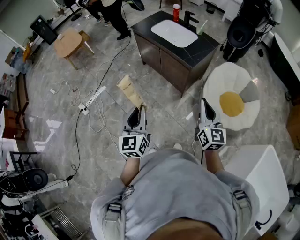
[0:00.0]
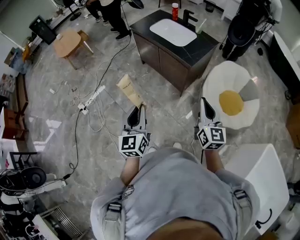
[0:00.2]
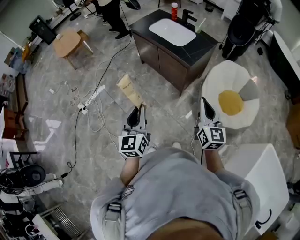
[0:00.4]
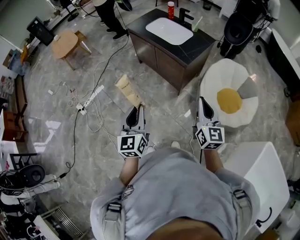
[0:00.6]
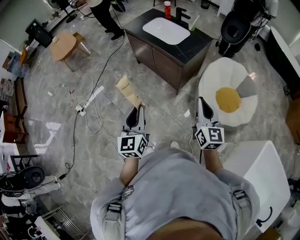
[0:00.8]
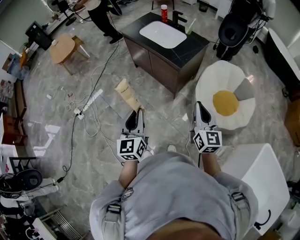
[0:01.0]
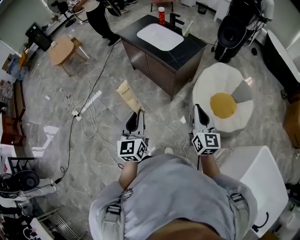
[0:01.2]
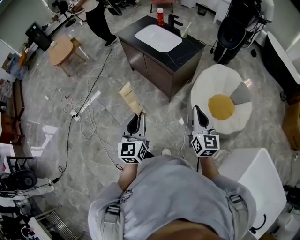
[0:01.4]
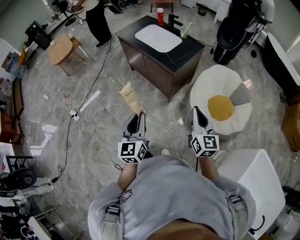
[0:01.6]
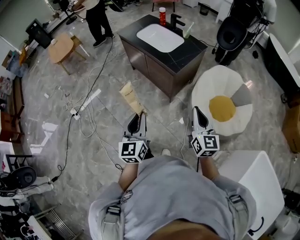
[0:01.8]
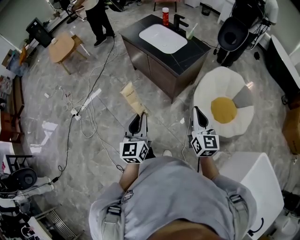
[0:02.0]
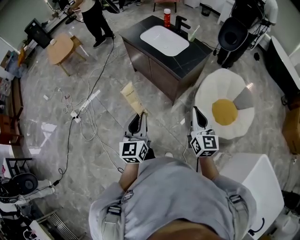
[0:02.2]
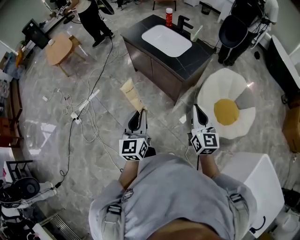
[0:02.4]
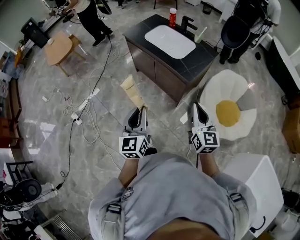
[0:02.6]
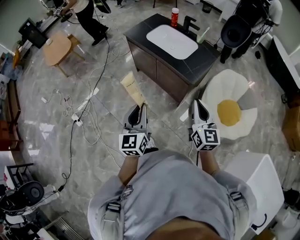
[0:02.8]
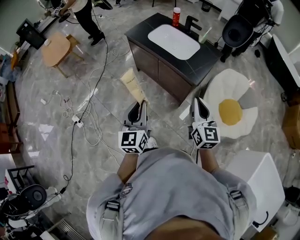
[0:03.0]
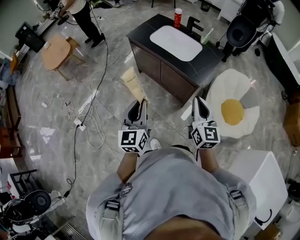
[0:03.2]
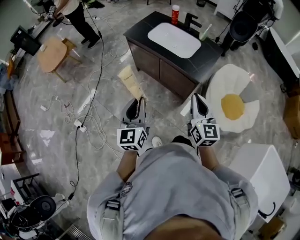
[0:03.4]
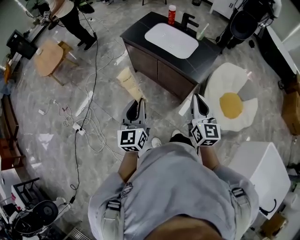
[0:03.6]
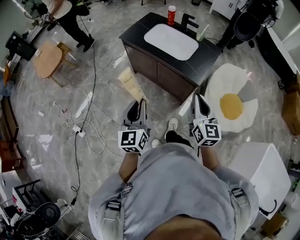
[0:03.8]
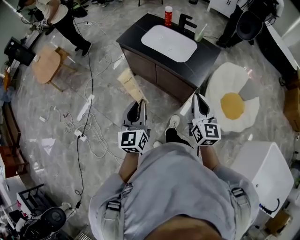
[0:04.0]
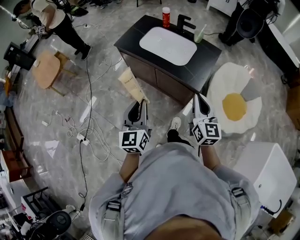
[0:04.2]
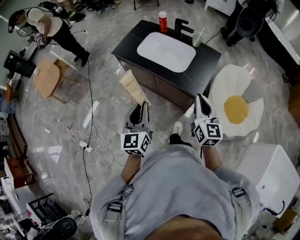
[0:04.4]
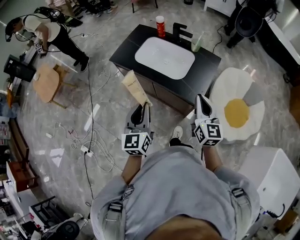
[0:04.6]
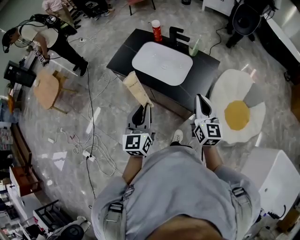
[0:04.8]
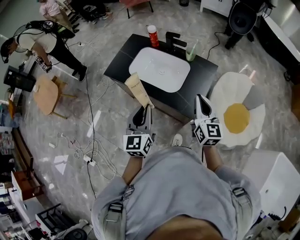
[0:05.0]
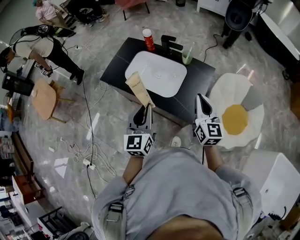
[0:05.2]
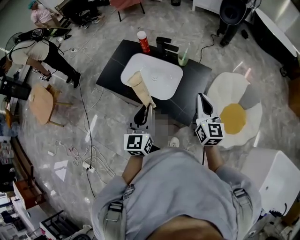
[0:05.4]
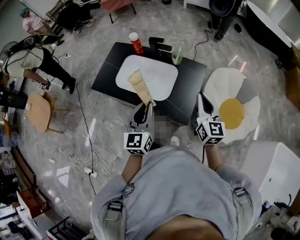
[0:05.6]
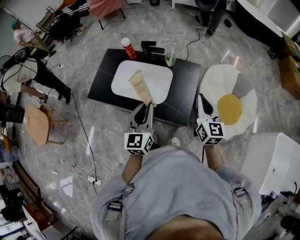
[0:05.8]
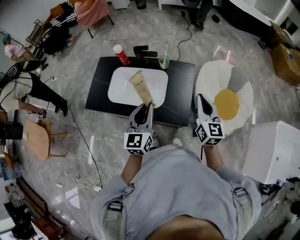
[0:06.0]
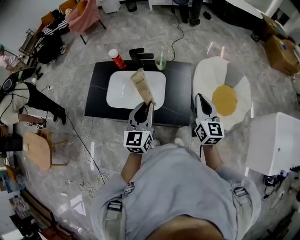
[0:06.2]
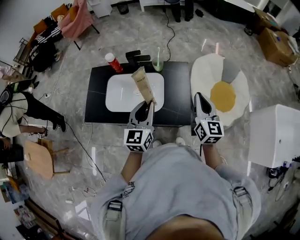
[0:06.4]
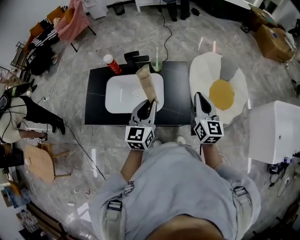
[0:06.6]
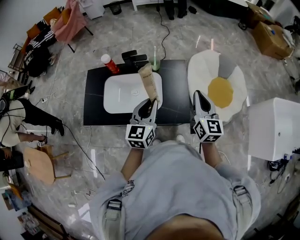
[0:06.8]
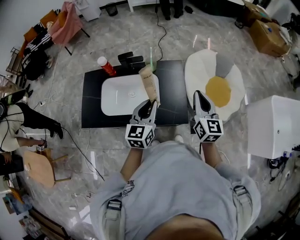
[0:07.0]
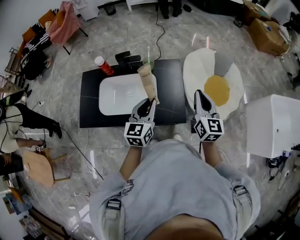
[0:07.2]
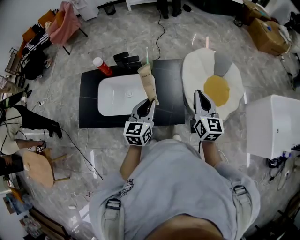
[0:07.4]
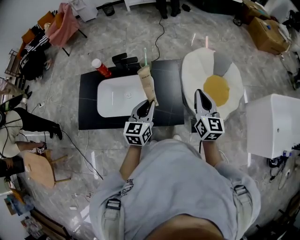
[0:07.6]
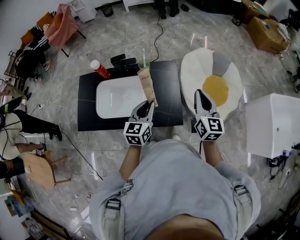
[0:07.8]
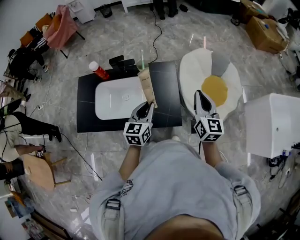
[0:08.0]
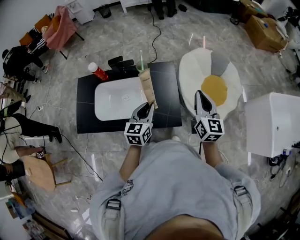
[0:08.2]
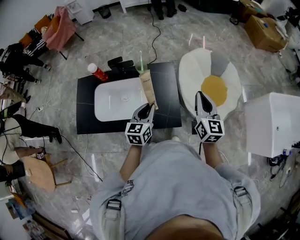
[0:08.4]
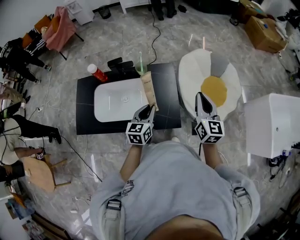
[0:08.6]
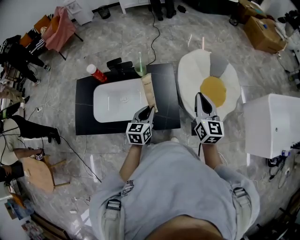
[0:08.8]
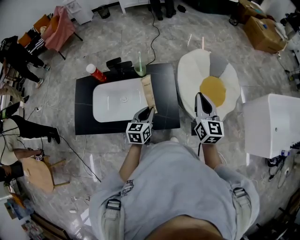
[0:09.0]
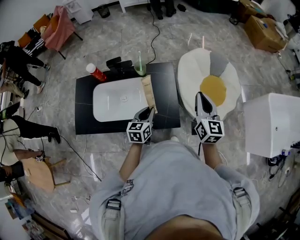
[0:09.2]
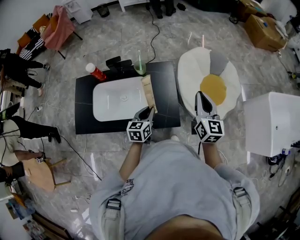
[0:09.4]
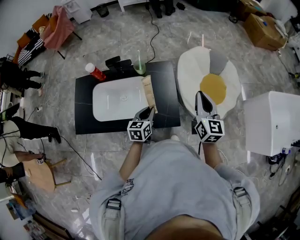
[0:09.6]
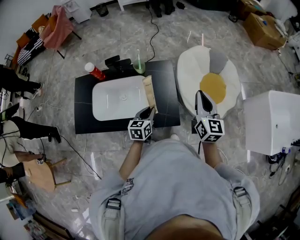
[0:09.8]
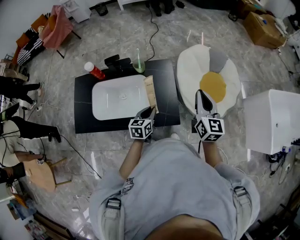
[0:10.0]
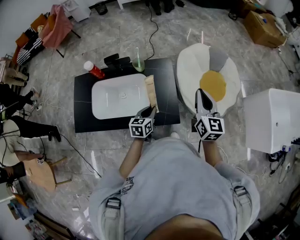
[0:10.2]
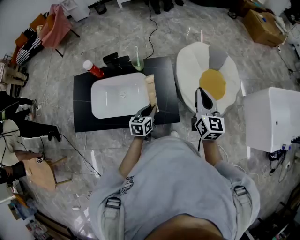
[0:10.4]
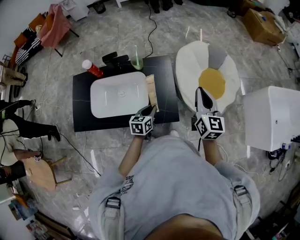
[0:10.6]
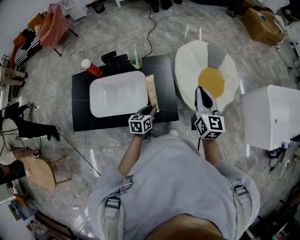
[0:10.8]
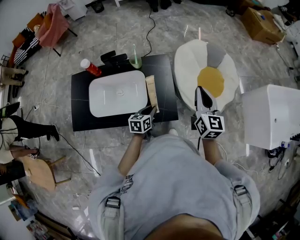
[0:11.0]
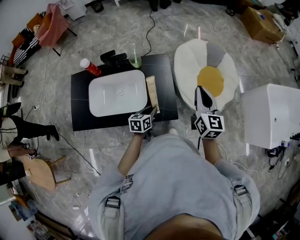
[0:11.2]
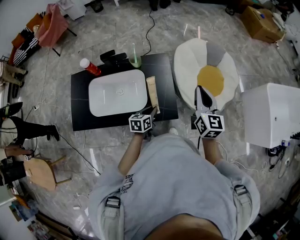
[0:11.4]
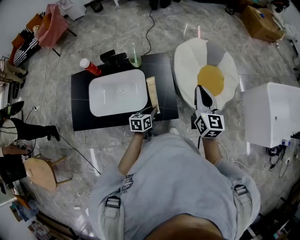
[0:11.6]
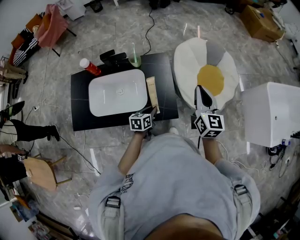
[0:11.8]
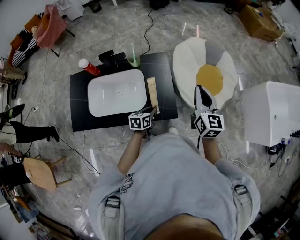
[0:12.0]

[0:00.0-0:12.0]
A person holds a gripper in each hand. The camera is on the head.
0:00.0 to 0:01.6: Both grippers move to the right, about 10 cm.
0:01.6 to 0:03.0: Both grippers travel together forward and to the left, roughly 25 cm.
0:03.0 to 0:04.4: The two grippers go roughly 20 cm forward.
0:04.4 to 0:06.0: Both grippers move forward and to the right, roughly 25 cm. The left gripper changes its angle by some 30 degrees, while the right gripper changes its angle by about 20 degrees.
0:06.0 to 0:07.6: The left gripper moves forward and downward, roughly 10 cm, and rotates some 20 degrees.
0:07.6 to 0:09.0: The left gripper travels downward by about 10 cm.
0:09.0 to 0:10.4: The left gripper shifts approximately 5 cm downward.
0:10.4 to 0:12.0: The left gripper travels downward by approximately 5 cm.

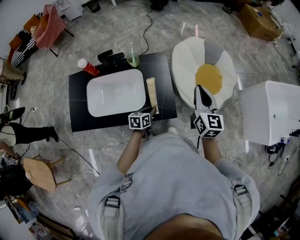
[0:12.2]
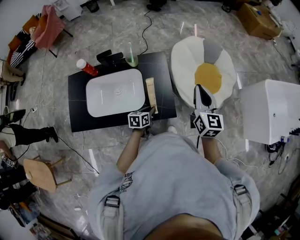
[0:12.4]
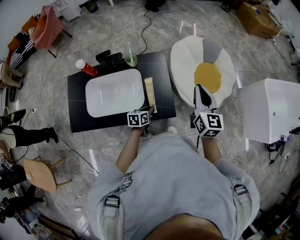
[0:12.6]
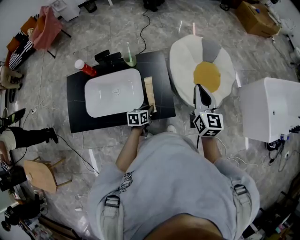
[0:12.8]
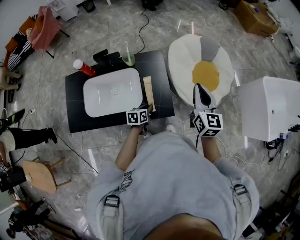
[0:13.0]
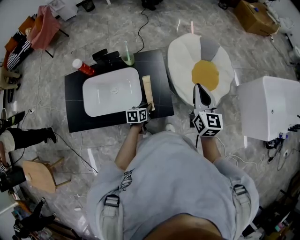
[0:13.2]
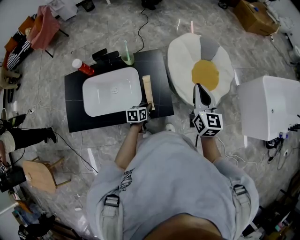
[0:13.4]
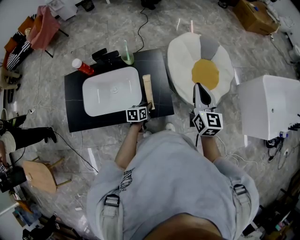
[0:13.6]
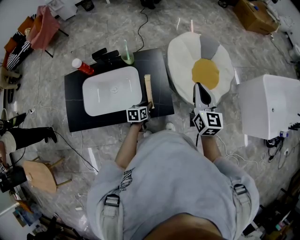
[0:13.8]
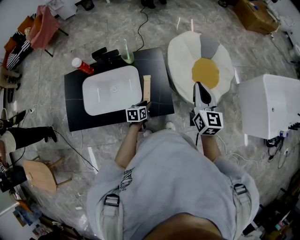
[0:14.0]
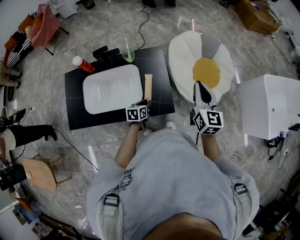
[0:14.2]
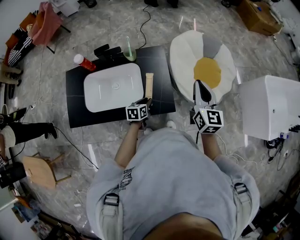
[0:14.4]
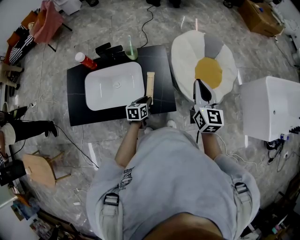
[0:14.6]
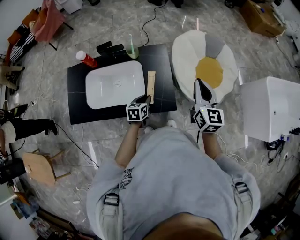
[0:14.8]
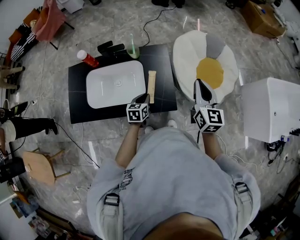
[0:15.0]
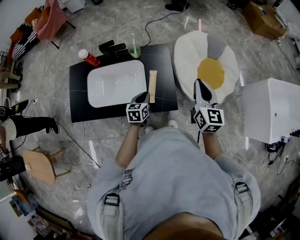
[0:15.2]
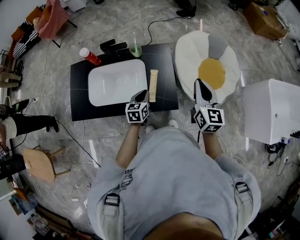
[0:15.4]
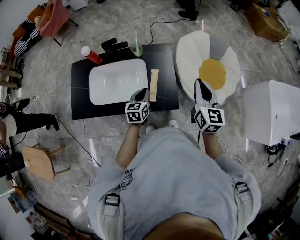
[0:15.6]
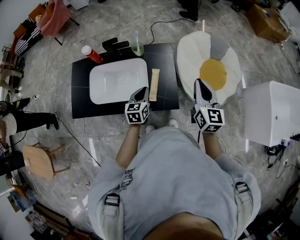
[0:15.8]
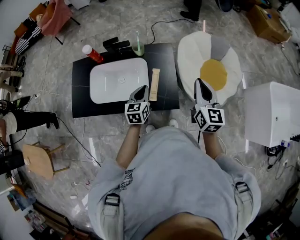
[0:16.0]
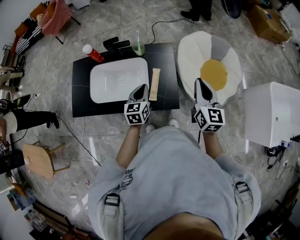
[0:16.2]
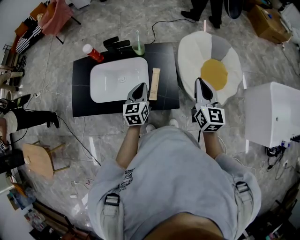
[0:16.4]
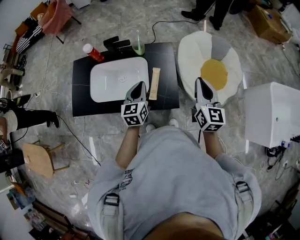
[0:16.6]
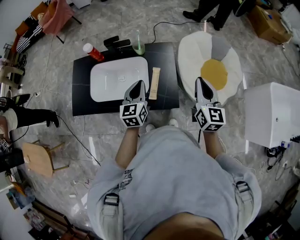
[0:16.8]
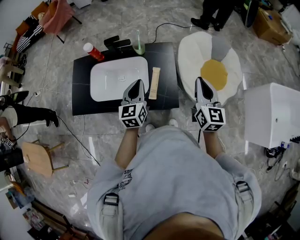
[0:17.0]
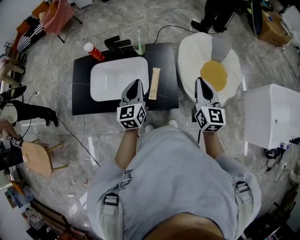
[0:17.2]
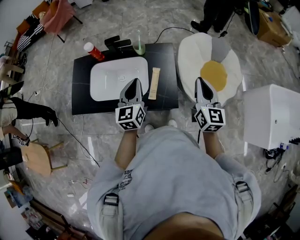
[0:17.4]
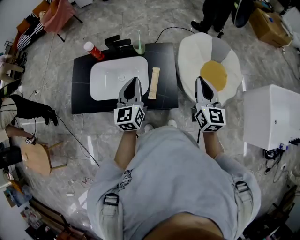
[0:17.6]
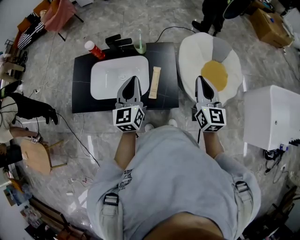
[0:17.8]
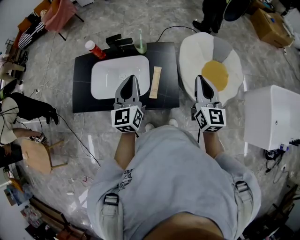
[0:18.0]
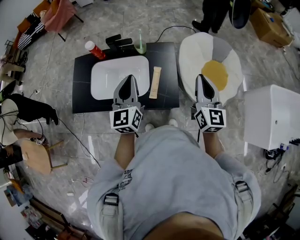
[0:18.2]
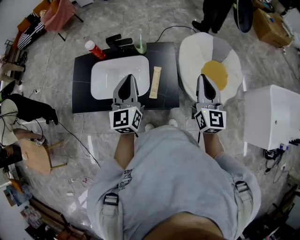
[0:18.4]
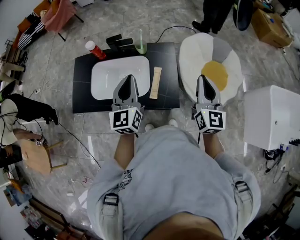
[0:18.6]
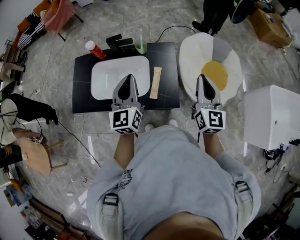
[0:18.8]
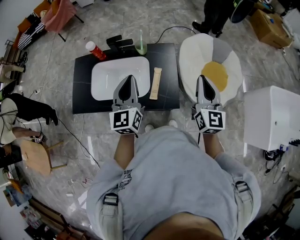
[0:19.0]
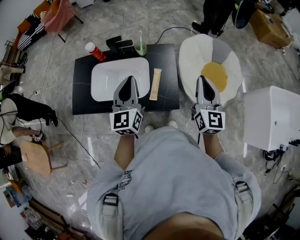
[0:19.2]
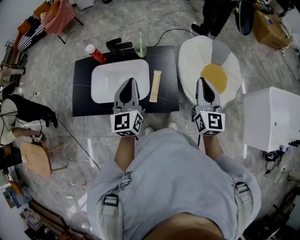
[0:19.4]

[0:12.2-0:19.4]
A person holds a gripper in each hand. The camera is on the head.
0:12.2 to 0:13.6: The grippers move only a little.
0:13.6 to 0:15.0: The left gripper travels upward by about 5 cm.
0:15.0 to 0:16.6: The left gripper shifts approximately 15 cm upward, and rotates approximately 20 degrees.
0:16.6 to 0:18.0: The left gripper is displaced upward by some 10 cm.
0:18.0 to 0:19.4: The grippers stay close to where they were, moving slightly.

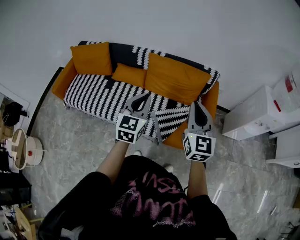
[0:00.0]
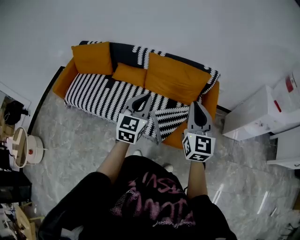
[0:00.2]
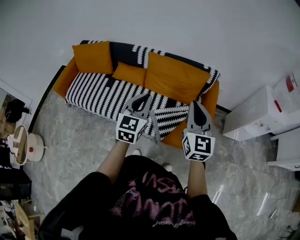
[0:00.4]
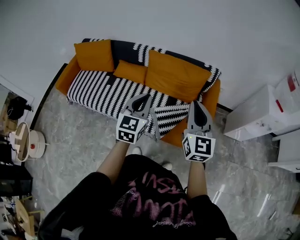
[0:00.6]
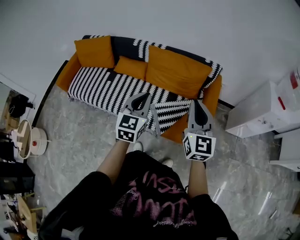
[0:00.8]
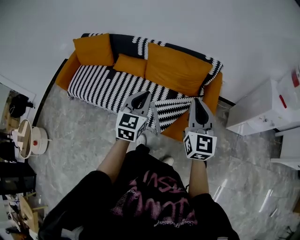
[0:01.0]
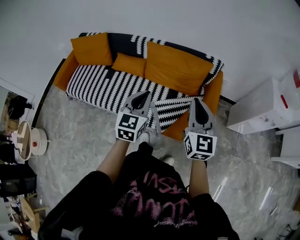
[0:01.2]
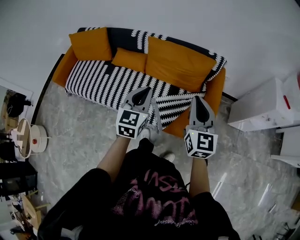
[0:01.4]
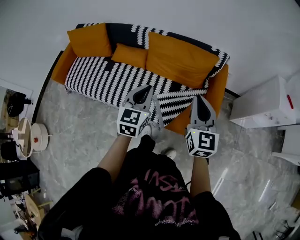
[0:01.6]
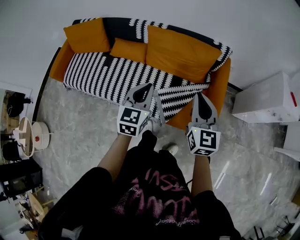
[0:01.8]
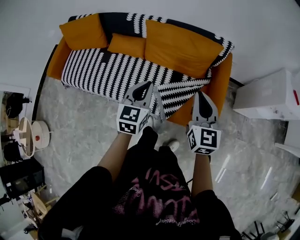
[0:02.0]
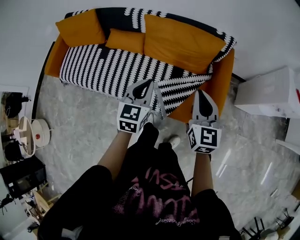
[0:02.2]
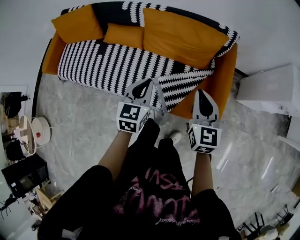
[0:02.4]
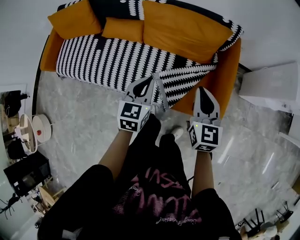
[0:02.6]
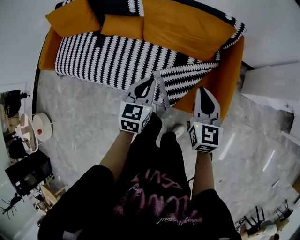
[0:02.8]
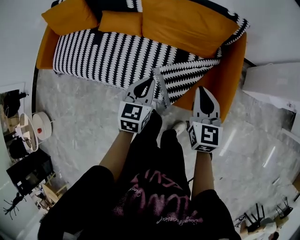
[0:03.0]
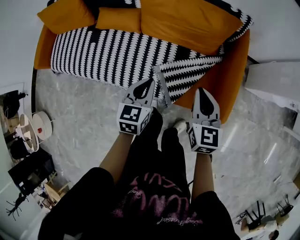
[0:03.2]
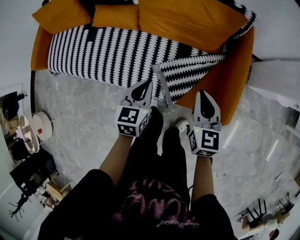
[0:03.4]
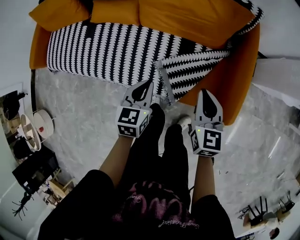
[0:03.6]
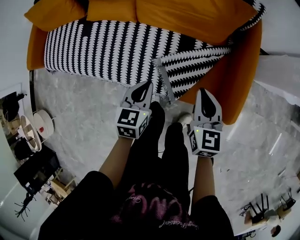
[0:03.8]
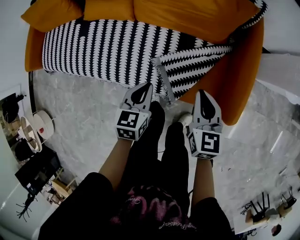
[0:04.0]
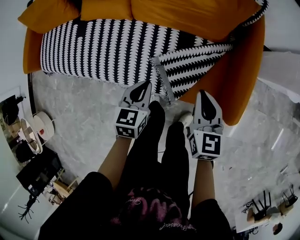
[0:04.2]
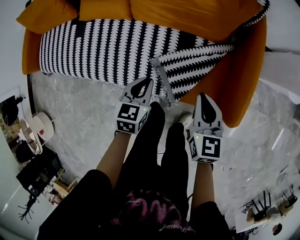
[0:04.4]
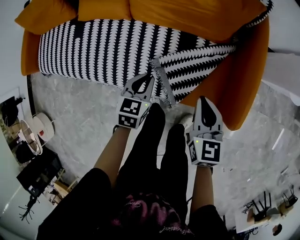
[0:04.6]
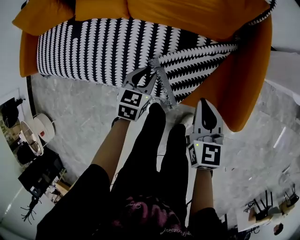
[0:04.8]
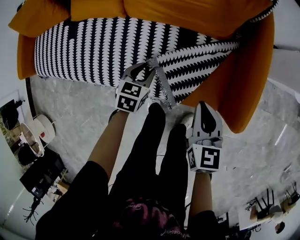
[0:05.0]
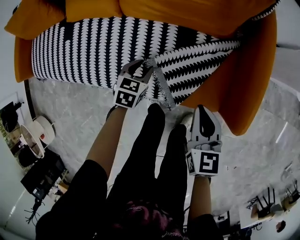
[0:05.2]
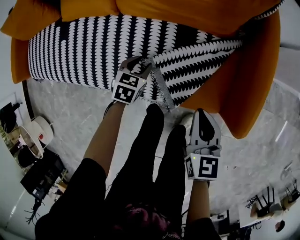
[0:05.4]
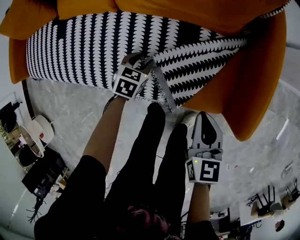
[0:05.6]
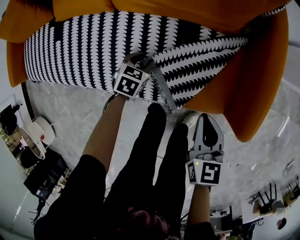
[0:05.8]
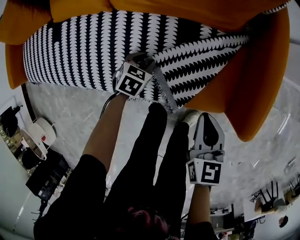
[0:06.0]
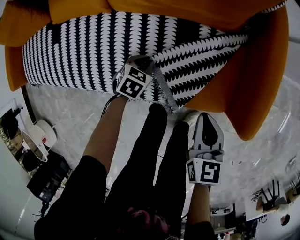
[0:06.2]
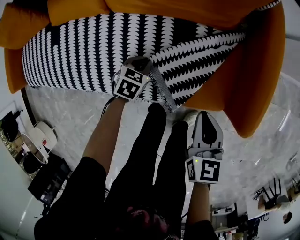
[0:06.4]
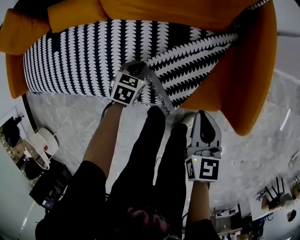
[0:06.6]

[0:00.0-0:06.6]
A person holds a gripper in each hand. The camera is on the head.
0:00.0 to 0:01.6: Both grippers move downward, about 5 cm.
0:01.6 to 0:03.2: Both grippers move downward, roughly 20 cm. The right gripper changes its angle by approximately 20 degrees.
0:03.2 to 0:05.0: The left gripper moves downward, roughly 25 cm, changes its angle by some 20 degrees, and opens its fingers; the right gripper travels downward by roughly 15 cm.
0:05.0 to 0:06.6: The left gripper travels downward by about 10 cm, and closes. The right gripper is displaced downward by approximately 5 cm.
